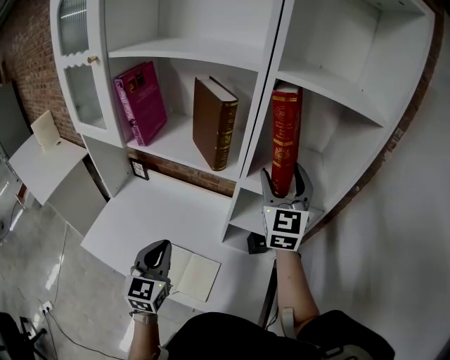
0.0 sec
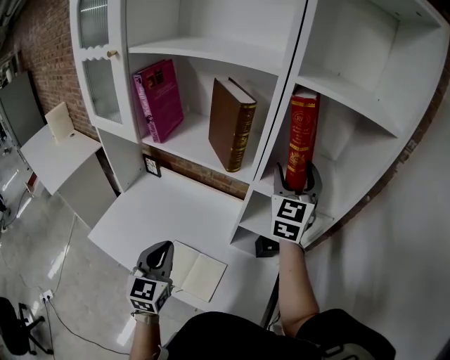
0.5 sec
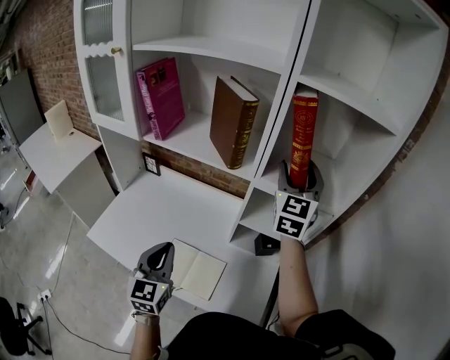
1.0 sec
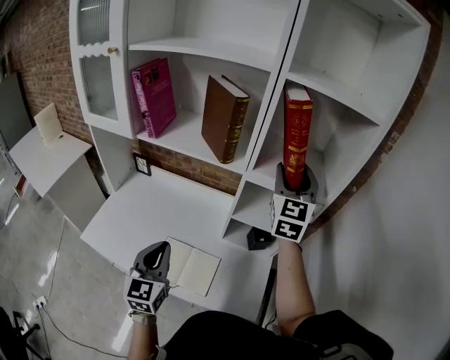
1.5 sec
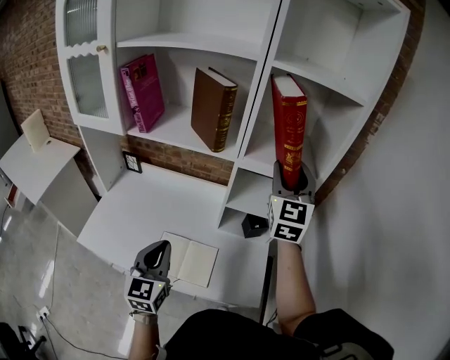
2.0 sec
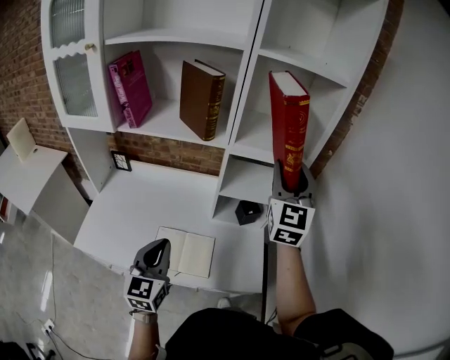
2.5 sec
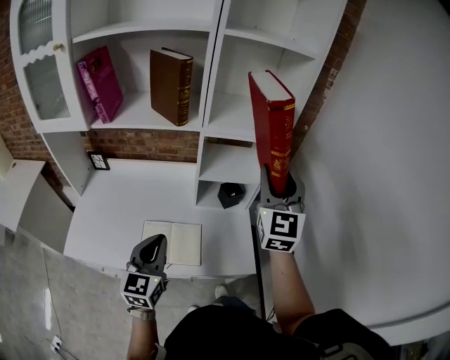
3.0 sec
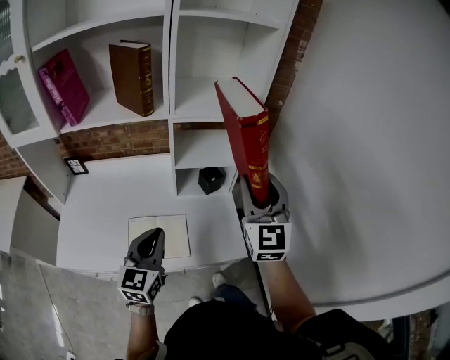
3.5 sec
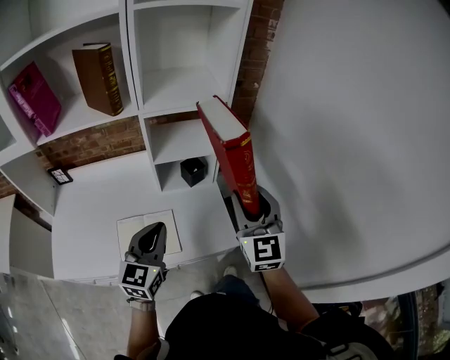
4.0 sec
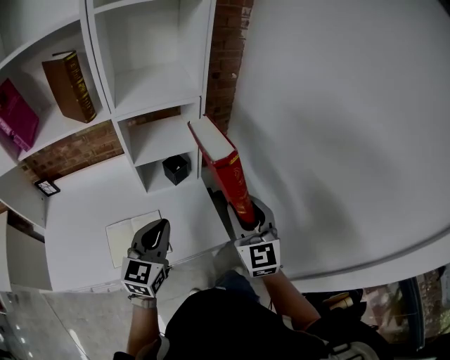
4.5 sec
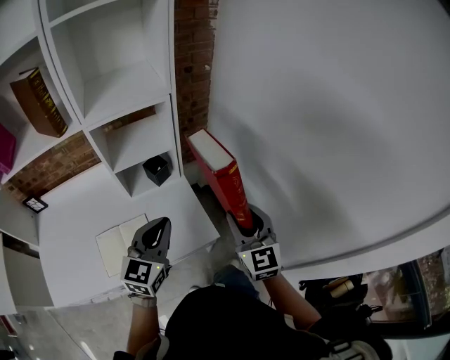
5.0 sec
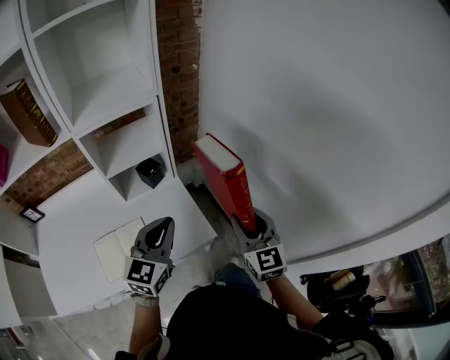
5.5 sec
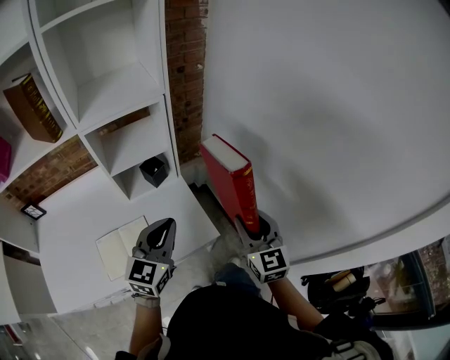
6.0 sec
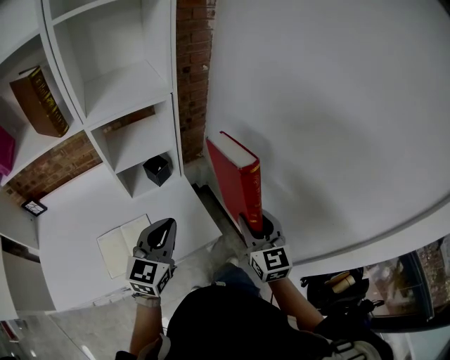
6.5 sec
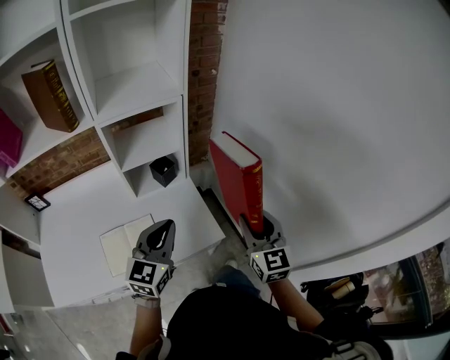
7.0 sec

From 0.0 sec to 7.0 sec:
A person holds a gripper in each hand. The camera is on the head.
From 0.0 sec to 2.0 sec: The two grippers go roughly 5 cm backward. The right gripper closes its fingers.
From 2.0 sec to 3.5 sec: The left gripper shifts approximately 10 cm to the right, and changes its angle by about 20 degrees. The right gripper shifts some 20 cm backward, downward and to the right.
From 3.5 sec to 5.0 sec: The right gripper travels downward, to the right and backward by roughly 25 cm. Meanwhile the left gripper goes roughly 15 cm to the right, and changes its angle by roughly 20 degrees.
From 5.0 sec to 7.0 sec: There are only small adjustments of the grippers.

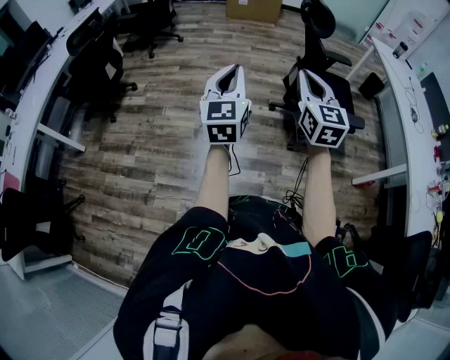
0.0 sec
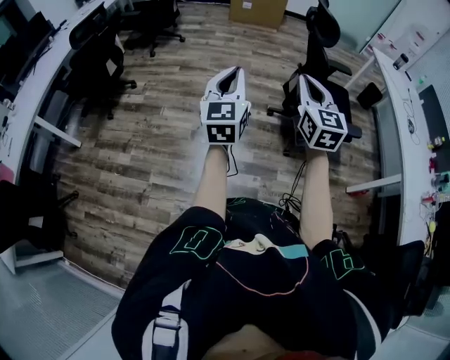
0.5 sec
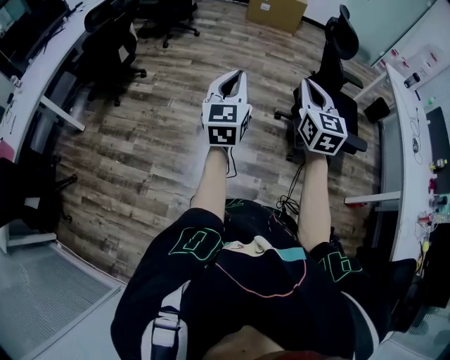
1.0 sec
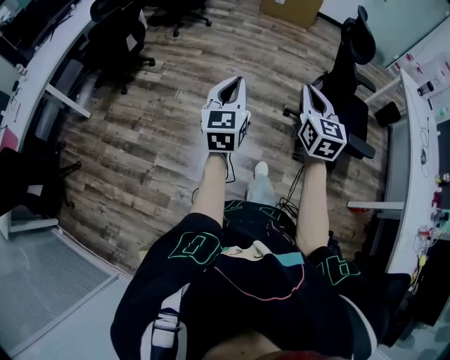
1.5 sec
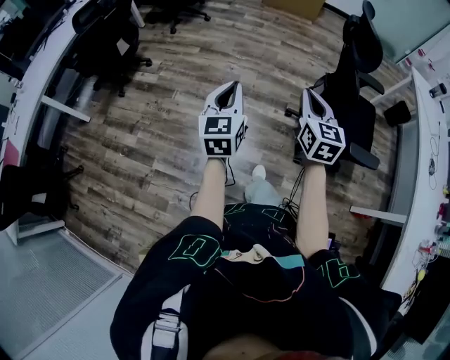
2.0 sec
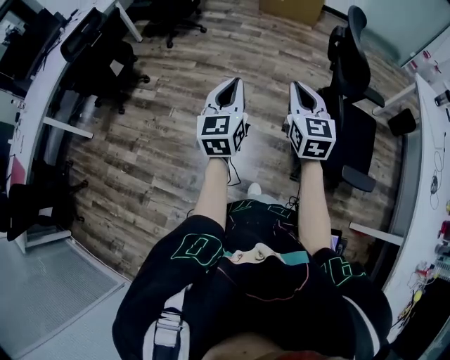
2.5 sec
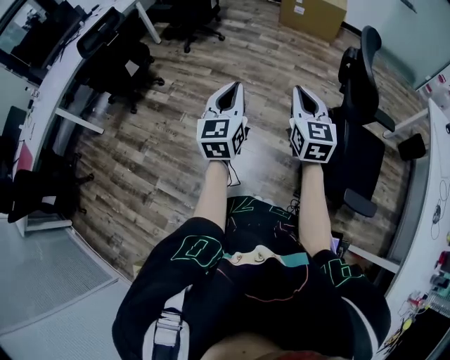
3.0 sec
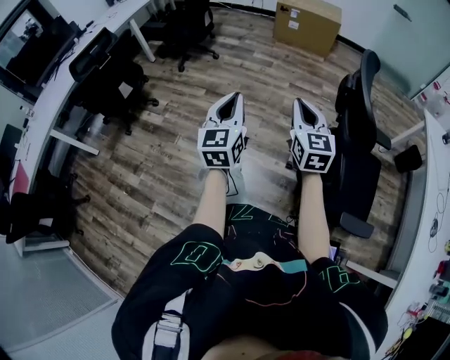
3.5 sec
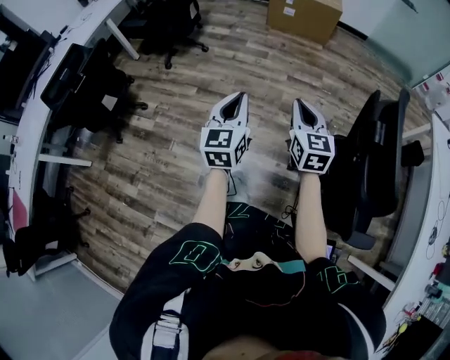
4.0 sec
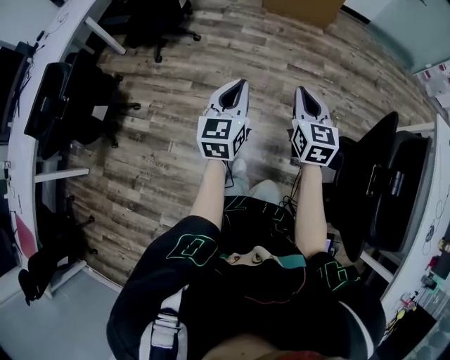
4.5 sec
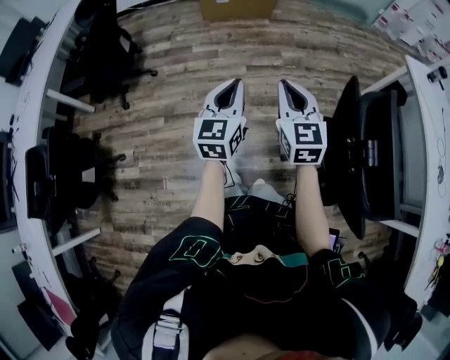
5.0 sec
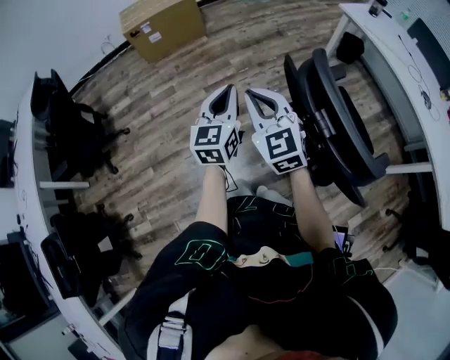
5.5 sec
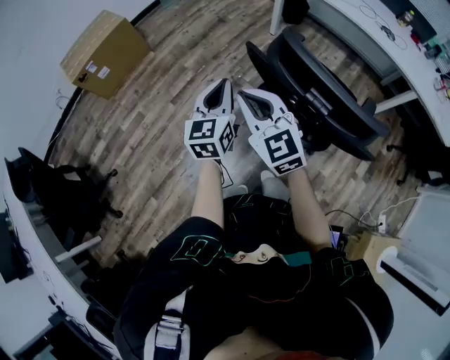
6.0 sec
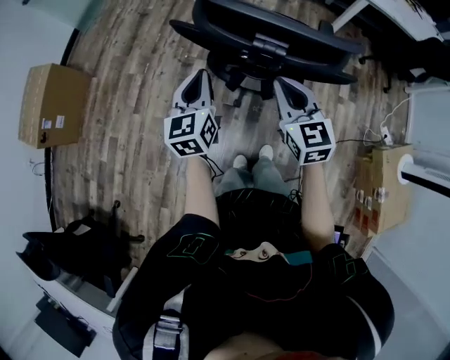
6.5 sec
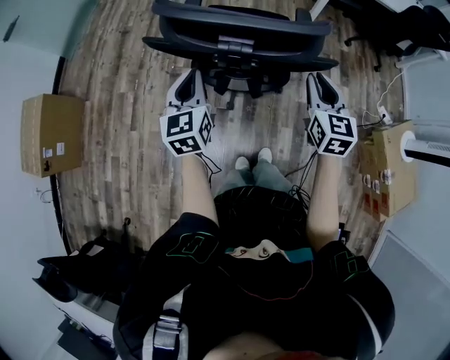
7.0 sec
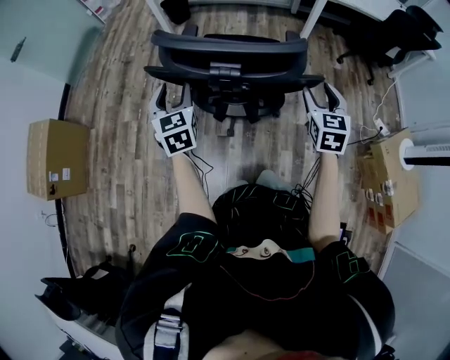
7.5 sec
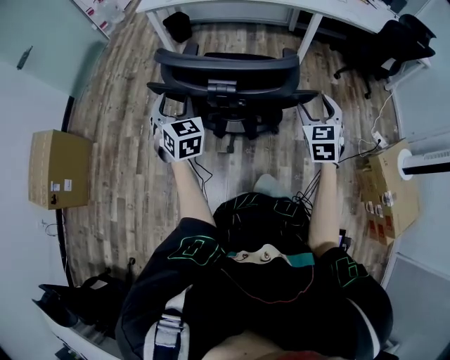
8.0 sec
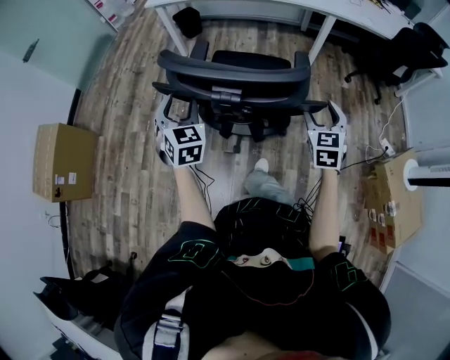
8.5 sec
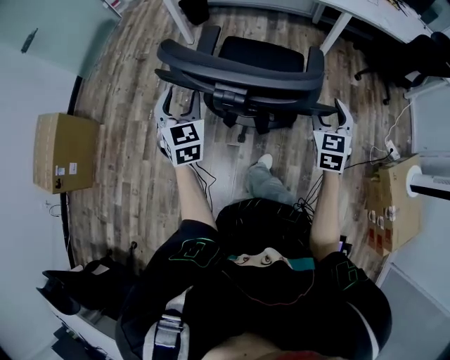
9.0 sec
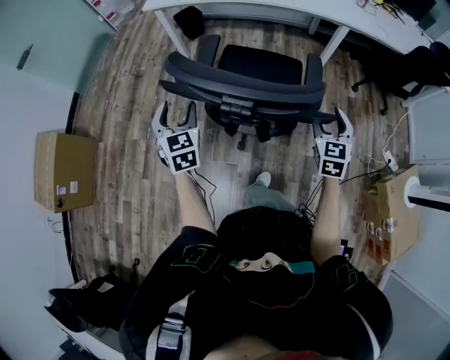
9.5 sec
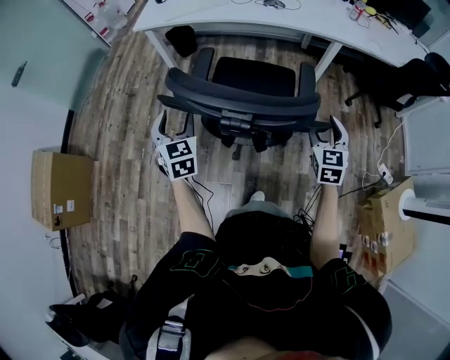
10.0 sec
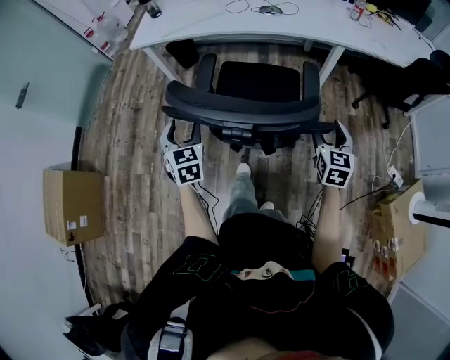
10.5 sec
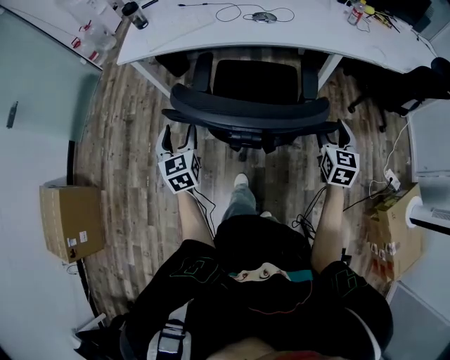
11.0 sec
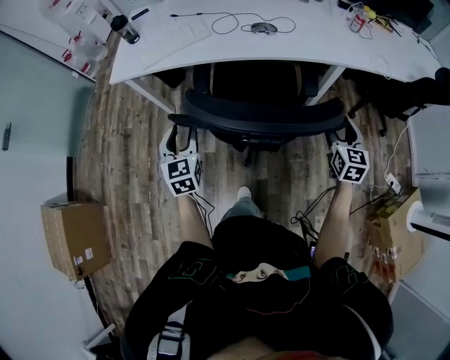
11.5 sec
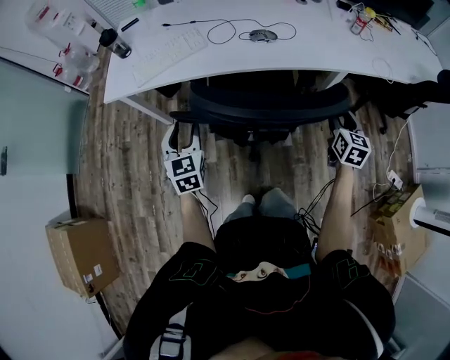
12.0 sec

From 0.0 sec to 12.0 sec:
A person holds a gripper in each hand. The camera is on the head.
From 0.0 sec to 2.0 sec: Both grippers travel together forward and downward, roughly 20 cm.
From 2.0 sec to 4.0 sec: The two grippers travel together, forward, roughly 40 cm.
From 4.0 sec to 6.0 sec: The right gripper shifts by some 20 cm, and rotates some 40 degrees. Meanwhile the left gripper changes place by about 35 cm, and rotates some 60 degrees.
From 6.0 sec to 8.0 sec: The left gripper changes place by some 15 cm, turns by roughly 40 degrees, and opens its fingers; the right gripper moves approximately 40 cm, changes its angle by roughly 70 degrees, and opens up.
From 8.0 sec to 10.0 sec: Both grippers travel together forward, approximately 20 cm.
From 10.0 sec to 12.0 sec: Both grippers move forward, some 35 cm. The right gripper changes its angle by roughly 30 degrees.

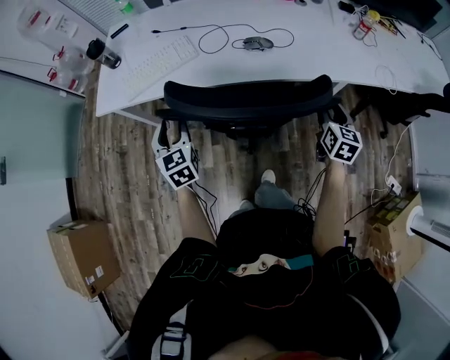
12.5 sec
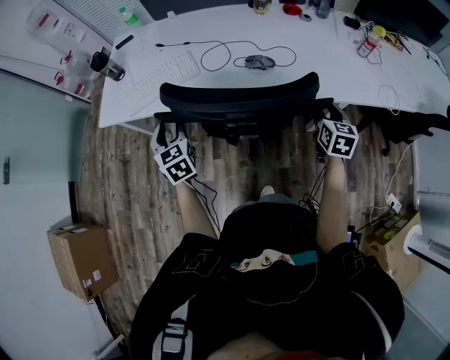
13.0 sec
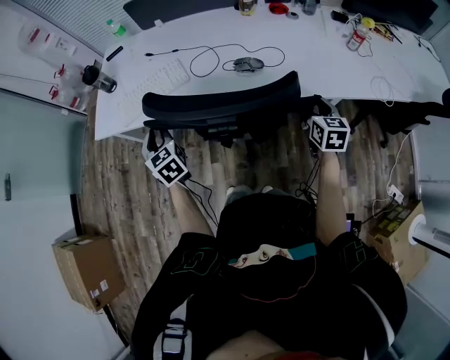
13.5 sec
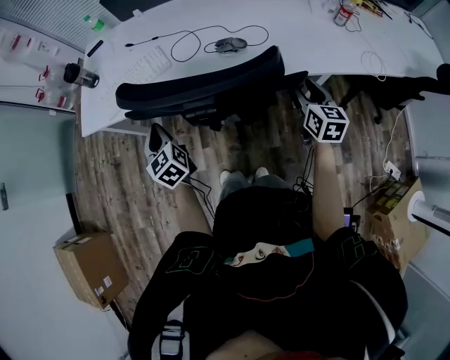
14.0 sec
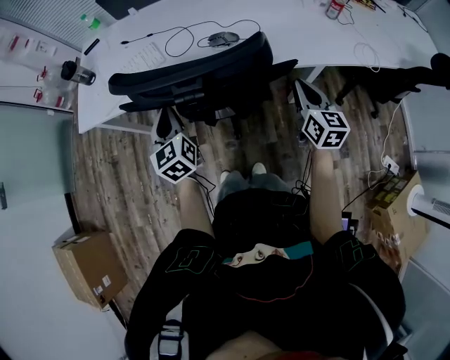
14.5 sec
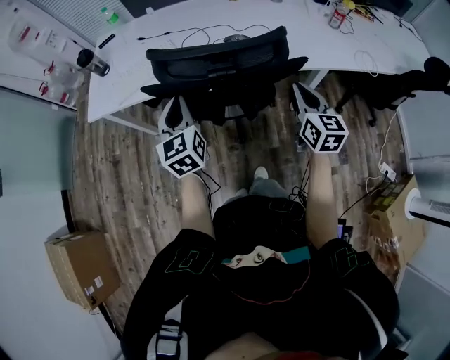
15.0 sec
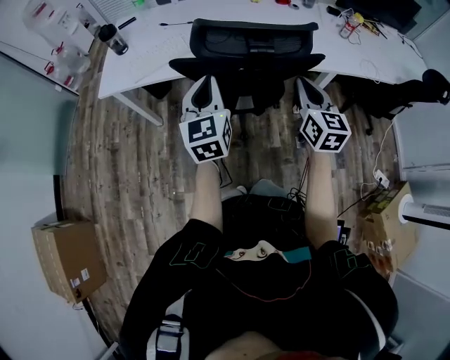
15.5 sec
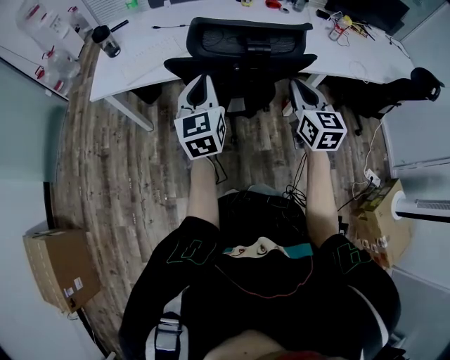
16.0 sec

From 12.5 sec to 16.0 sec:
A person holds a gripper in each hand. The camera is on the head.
From 12.5 sec to 14.5 sec: The left gripper travels to the right by some 10 cm, and closes up, while the right gripper travels forward and back again, approximately 10 cm each way, and closes its fingers.
From 14.5 sec to 16.0 sec: The right gripper moves to the left, upward and backward, some 20 cm. Meanwhile the left gripper travels upward and backward by roughly 15 cm.

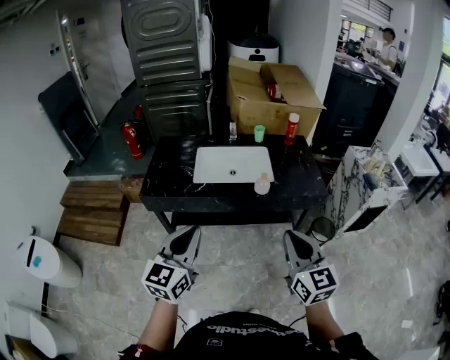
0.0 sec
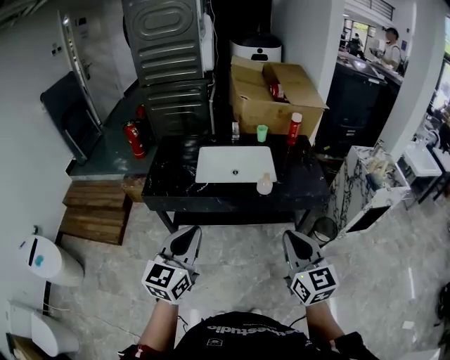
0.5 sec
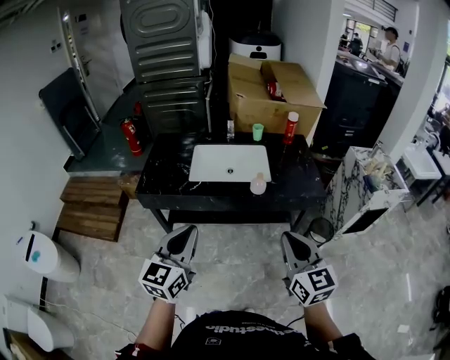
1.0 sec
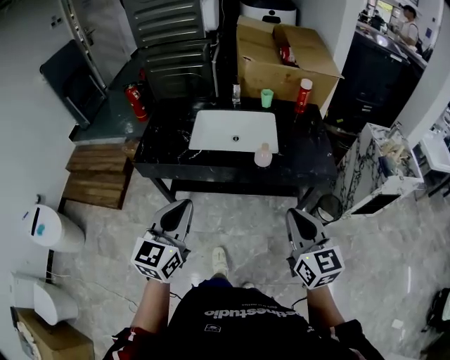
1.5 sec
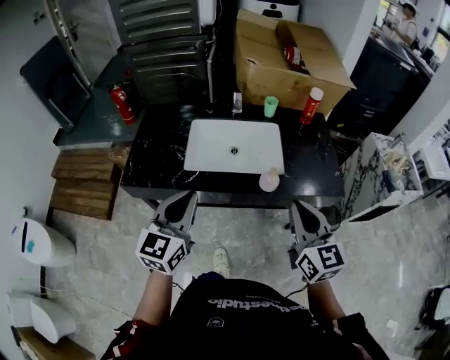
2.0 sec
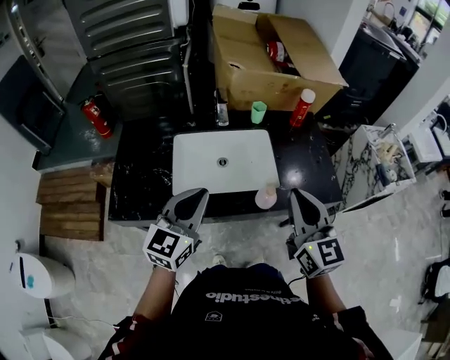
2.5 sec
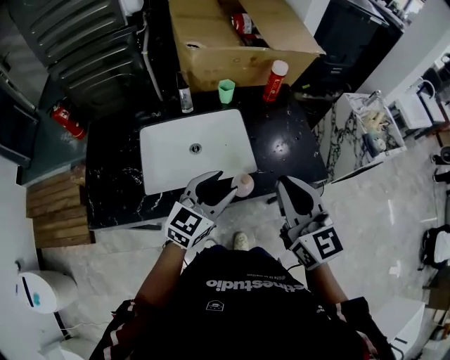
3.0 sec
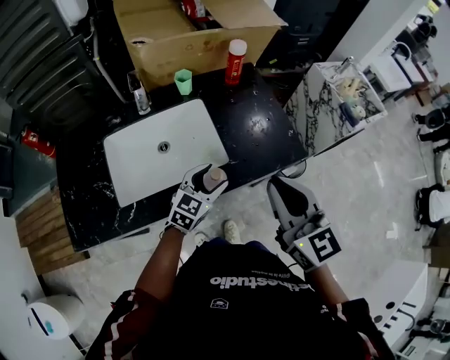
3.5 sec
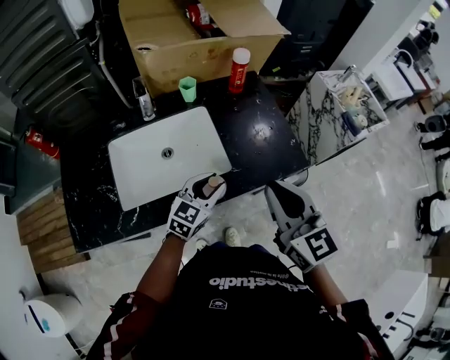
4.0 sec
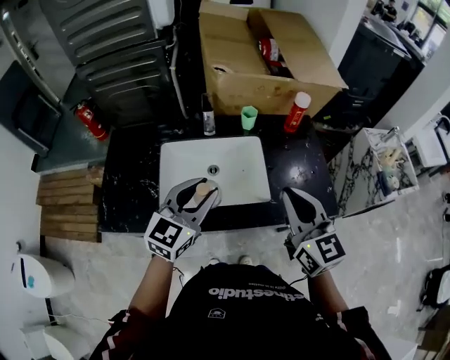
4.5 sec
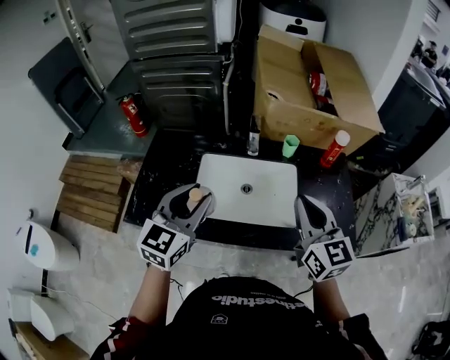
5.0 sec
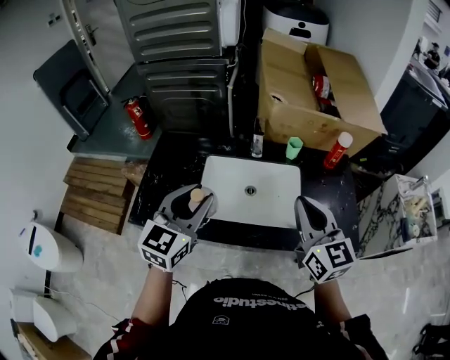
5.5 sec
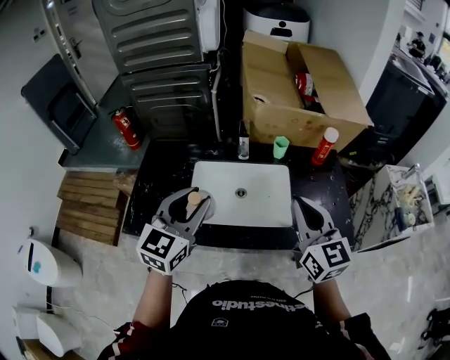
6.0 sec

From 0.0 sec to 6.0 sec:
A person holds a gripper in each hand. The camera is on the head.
From 0.0 sec to 2.0 sec: The grippers both shift forward by some 20 cm.
From 2.0 sec to 4.0 sec: The left gripper moves about 35 cm, changes its angle by about 40 degrees, and opens up. The right gripper shifts by roughly 15 cm.
From 4.0 sec to 6.0 sec: The right gripper shifts by approximately 15 cm. The left gripper shifts by approximately 35 cm, and swivels some 40 degrees.
